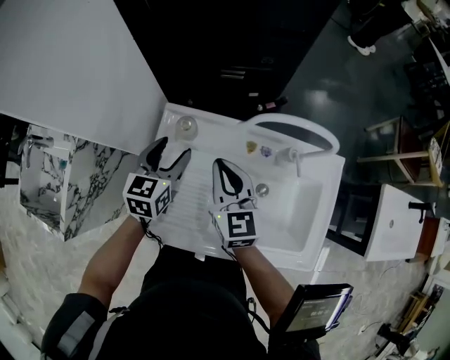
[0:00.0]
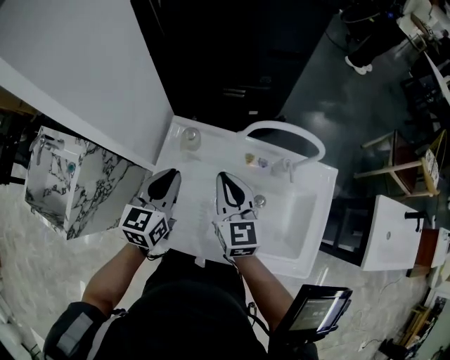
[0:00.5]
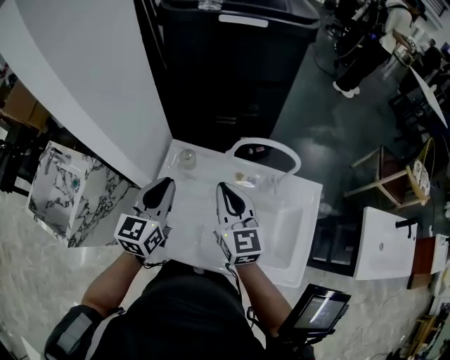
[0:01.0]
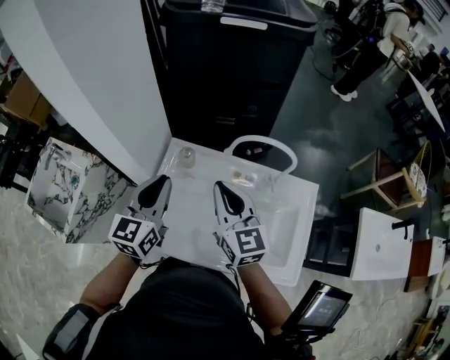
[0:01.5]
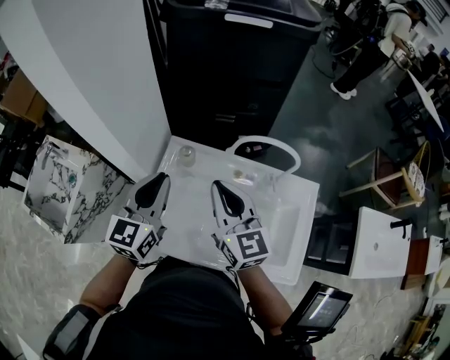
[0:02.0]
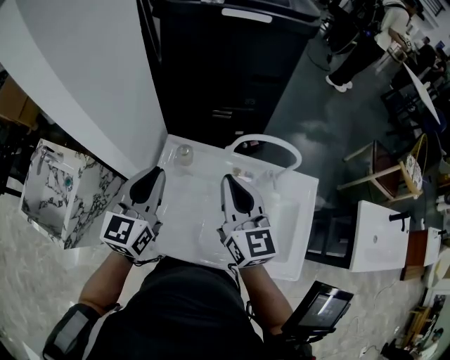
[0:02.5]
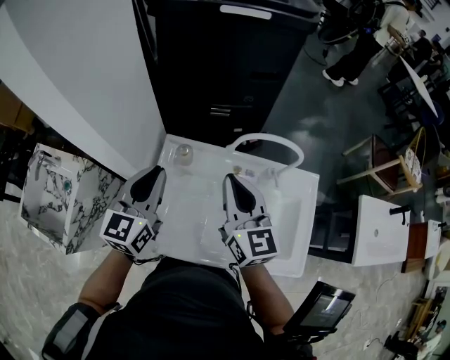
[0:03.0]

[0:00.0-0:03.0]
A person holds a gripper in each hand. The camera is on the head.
0:00.0 to 0:01.5: The two grippers go some 20 cm upward and backward. The left gripper closes its fingers.
0:01.5 to 0:03.0: The grippers stay close to where they were, moving slightly.

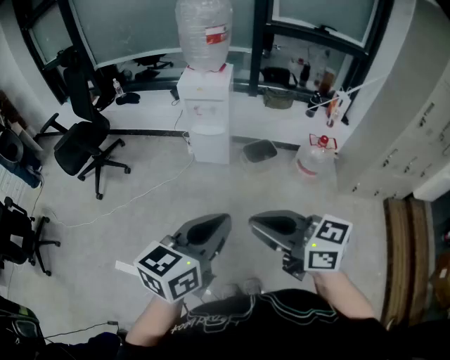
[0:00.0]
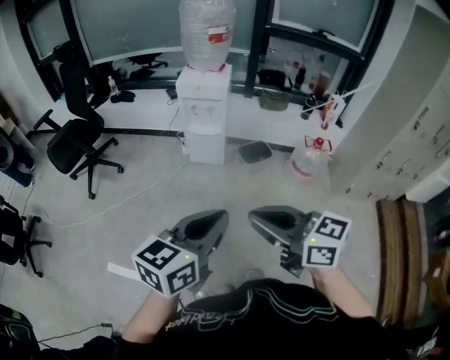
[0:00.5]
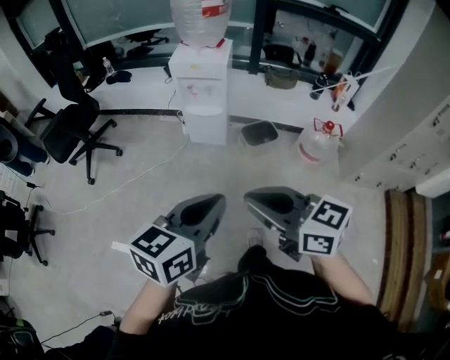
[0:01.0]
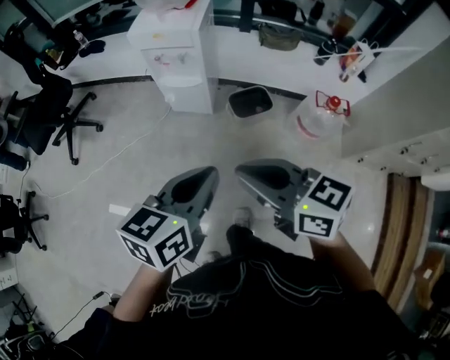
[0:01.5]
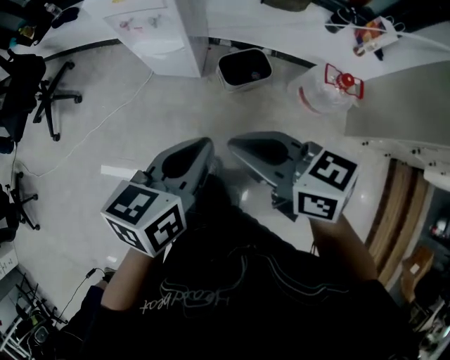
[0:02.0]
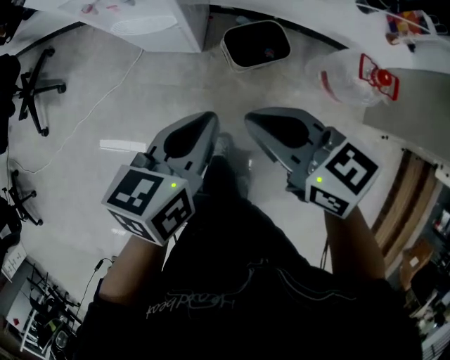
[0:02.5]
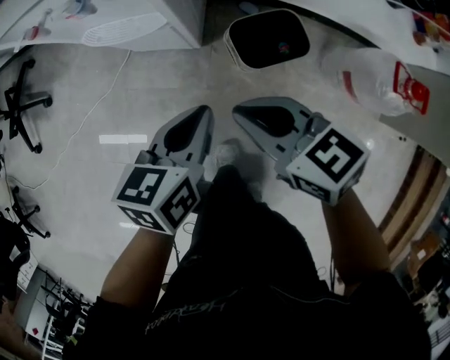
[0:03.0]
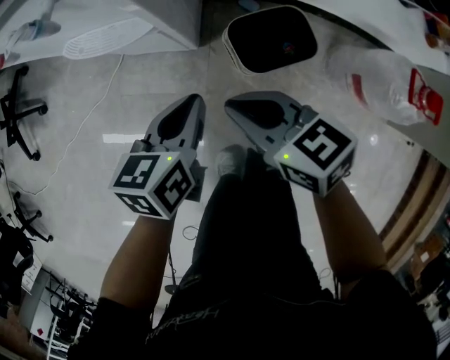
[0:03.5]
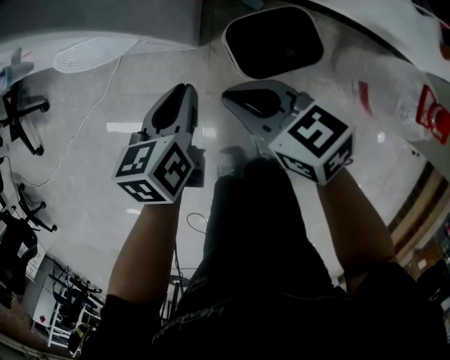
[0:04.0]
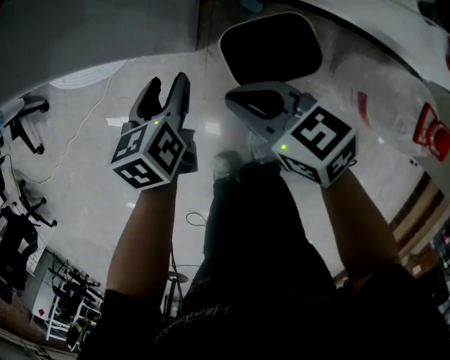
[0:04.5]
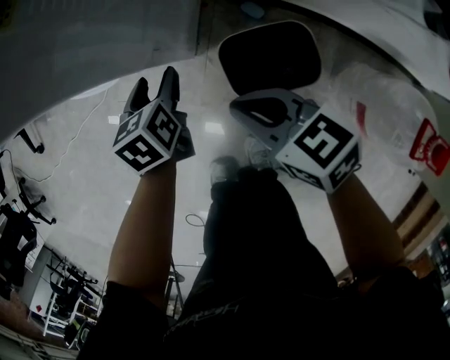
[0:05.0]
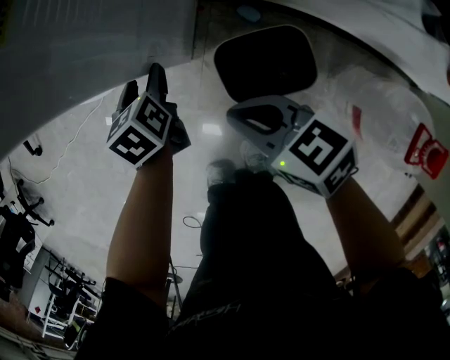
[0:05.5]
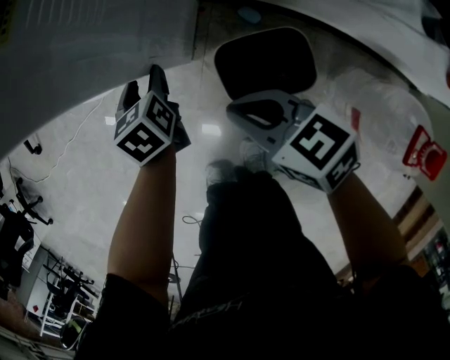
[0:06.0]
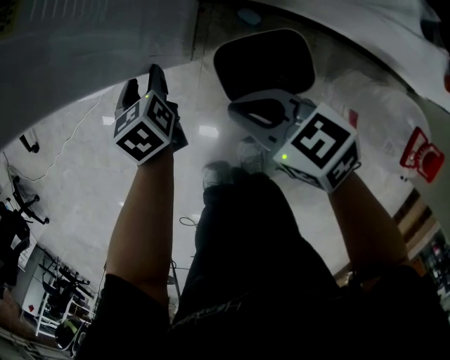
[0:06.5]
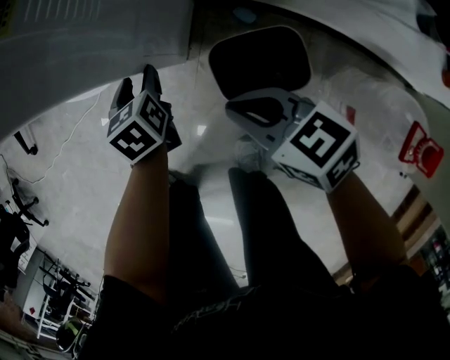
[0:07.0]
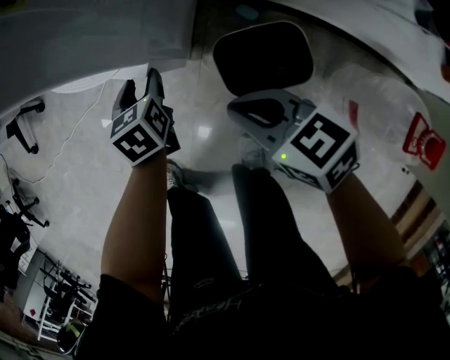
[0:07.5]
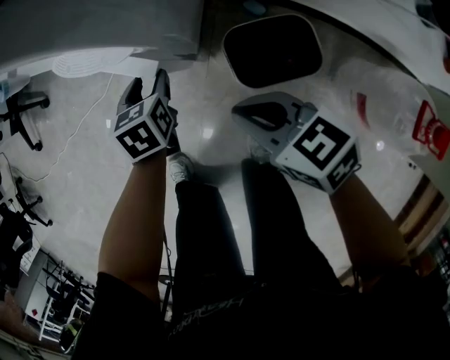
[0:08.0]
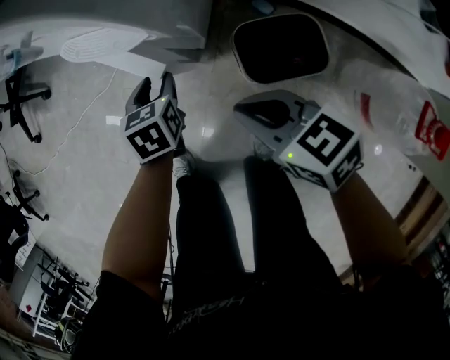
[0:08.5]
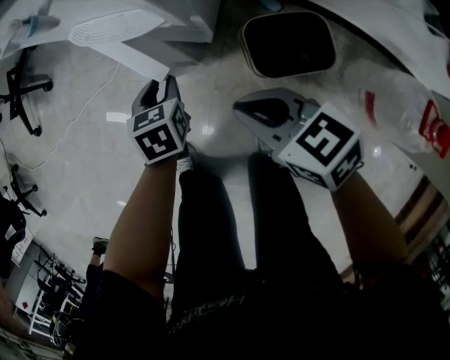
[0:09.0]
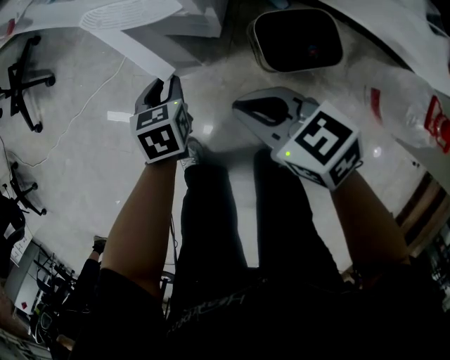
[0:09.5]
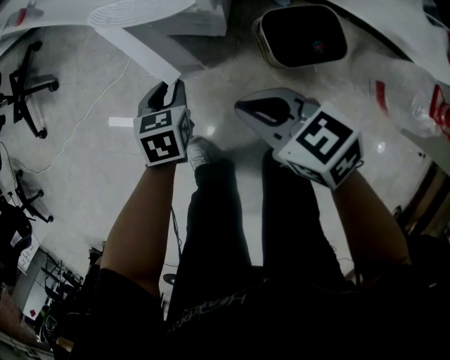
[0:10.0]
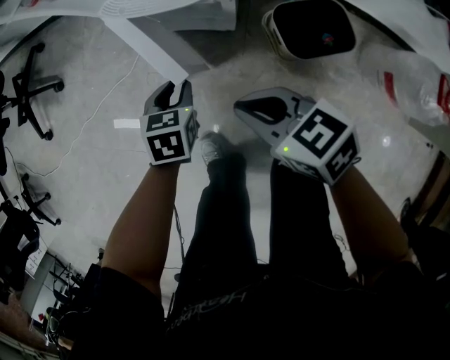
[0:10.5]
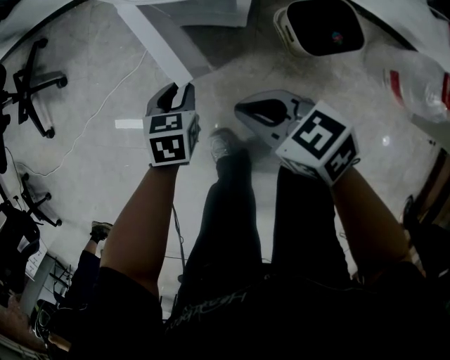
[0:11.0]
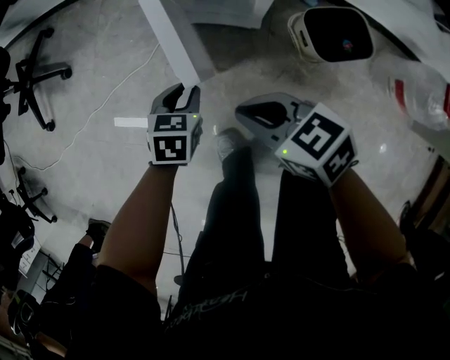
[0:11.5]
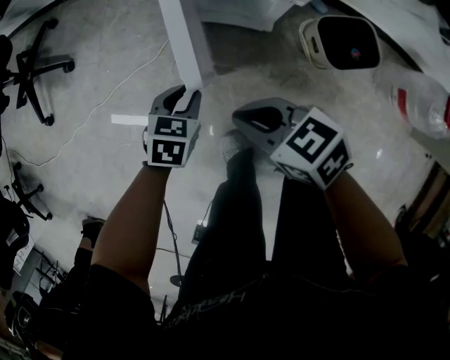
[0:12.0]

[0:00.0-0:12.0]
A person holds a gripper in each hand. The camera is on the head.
0:00.0 to 0:02.0: The two grippers go some 40 cm forward, downward and to the right. The left gripper swivels some 20 degrees.
0:02.0 to 0:04.0: Both grippers travel together downward and forward, roughly 50 cm. The left gripper swivels roughly 20 degrees.
0:04.0 to 0:06.0: The right gripper shifts by roughly 5 cm. Meanwhile the left gripper moves some 15 cm, swivels roughly 30 degrees, and opens its fingers.
0:06.0 to 0:08.0: Both grippers travel together to the left, about 5 cm.
0:08.0 to 0:10.0: The two grippers go approximately 10 cm to the left. The left gripper closes up.
0:10.0 to 0:12.0: Both grippers move to the left, some 15 cm.

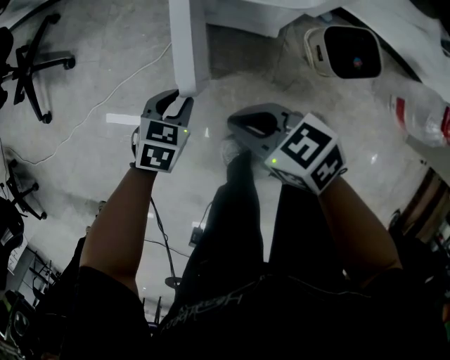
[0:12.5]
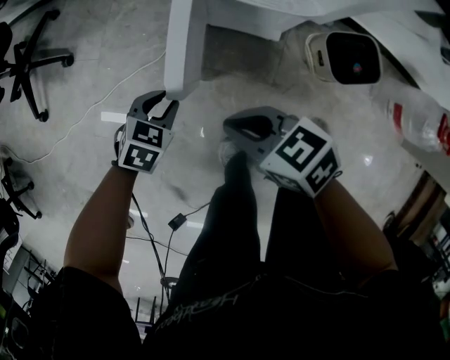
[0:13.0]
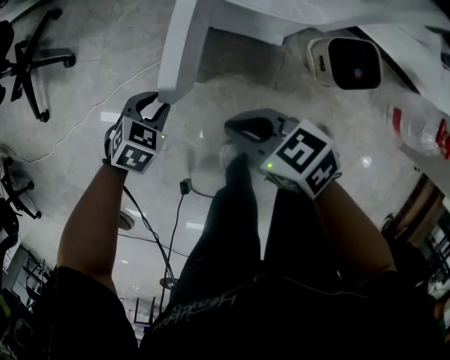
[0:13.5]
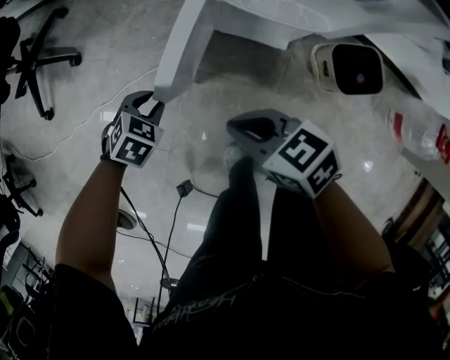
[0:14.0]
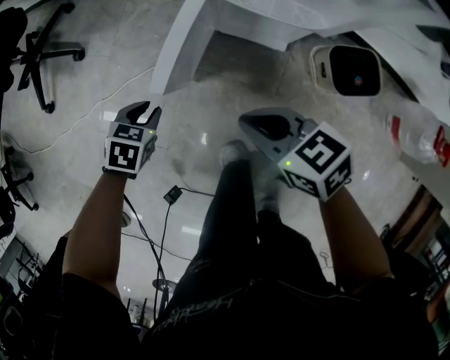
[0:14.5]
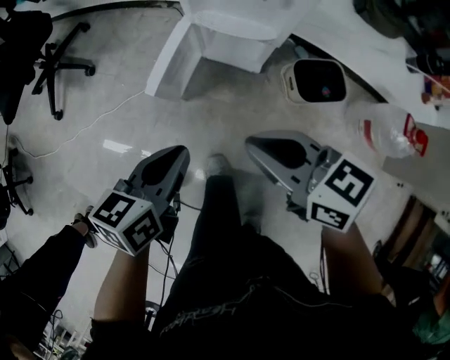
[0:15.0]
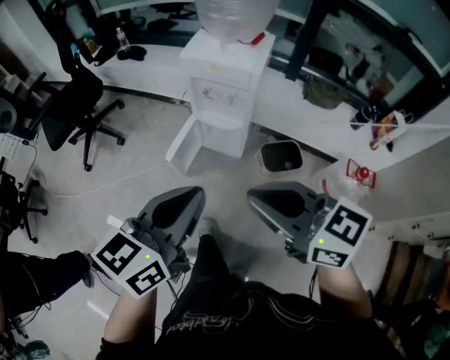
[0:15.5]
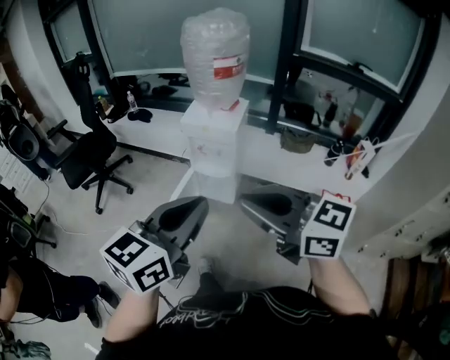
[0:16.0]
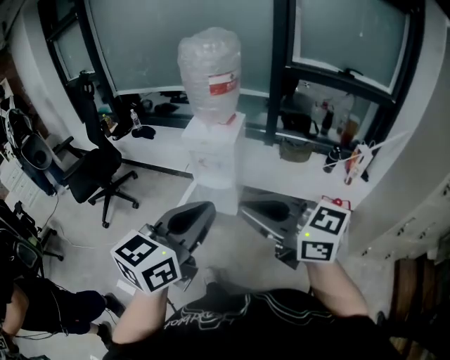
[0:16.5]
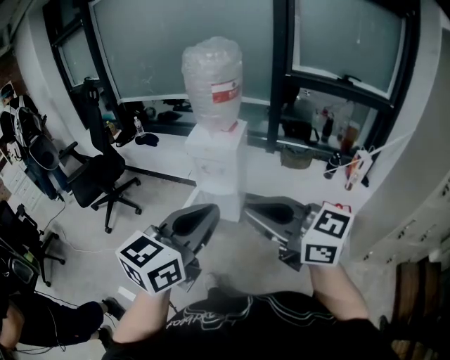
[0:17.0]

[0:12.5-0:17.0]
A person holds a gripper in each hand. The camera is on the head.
0:12.5 to 0:14.5: The left gripper goes roughly 10 cm to the left.
0:14.5 to 0:17.0: The grippers both shift upward and backward by approximately 90 cm. The right gripper tilts its fingers roughly 40 degrees upward; the left gripper angles its fingers upward, by some 70 degrees, and closes up.

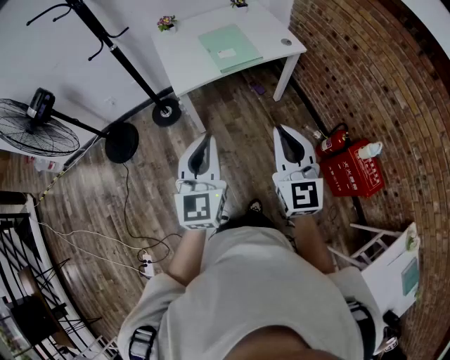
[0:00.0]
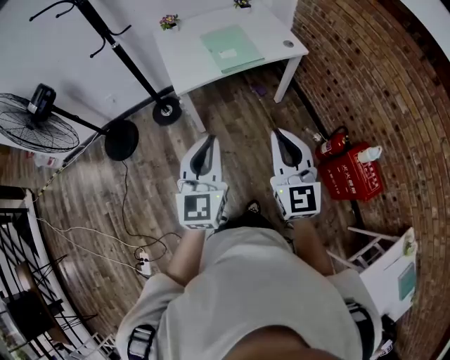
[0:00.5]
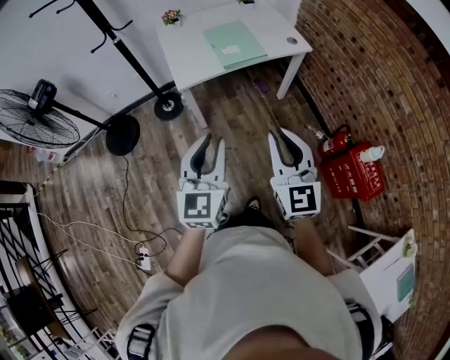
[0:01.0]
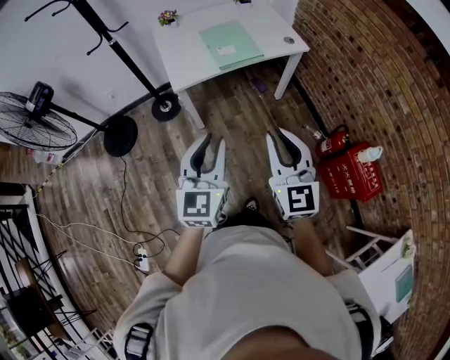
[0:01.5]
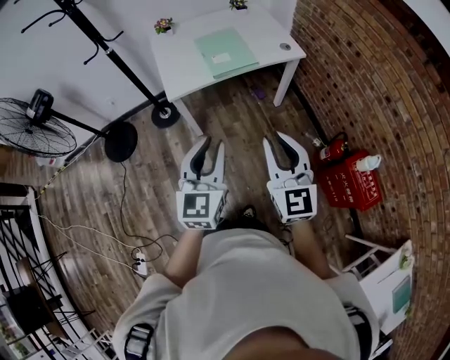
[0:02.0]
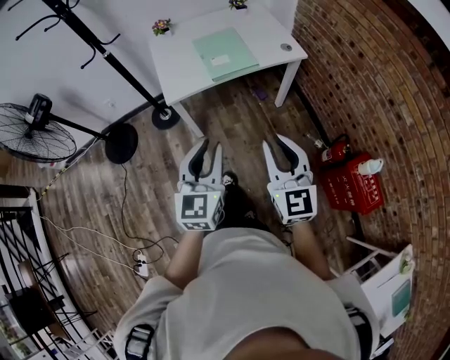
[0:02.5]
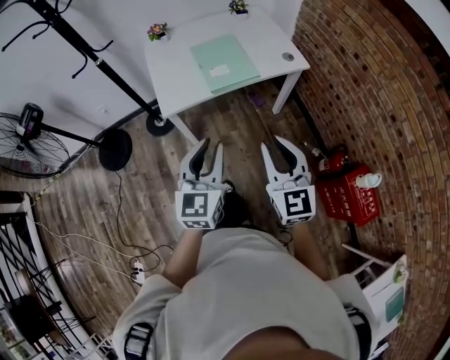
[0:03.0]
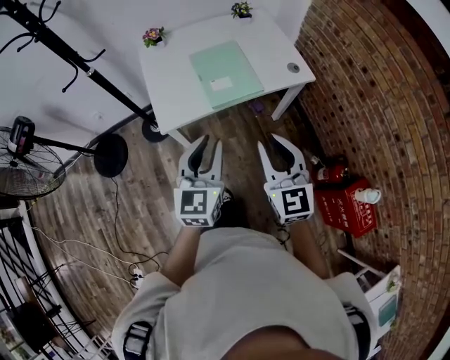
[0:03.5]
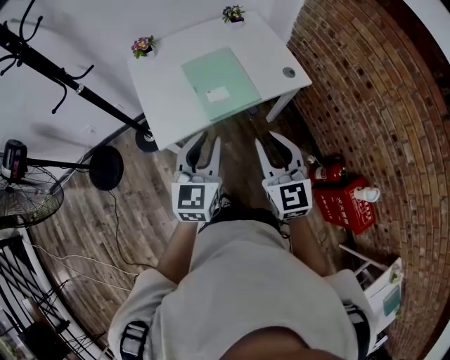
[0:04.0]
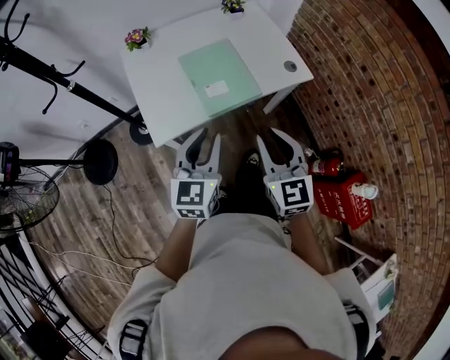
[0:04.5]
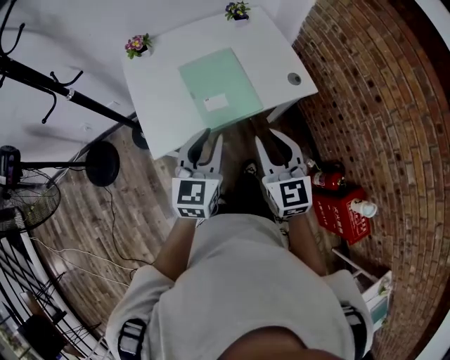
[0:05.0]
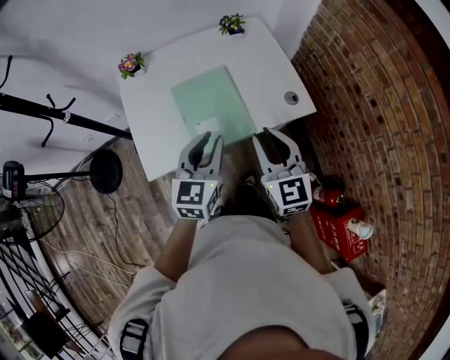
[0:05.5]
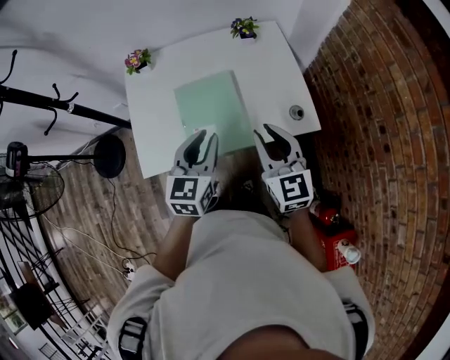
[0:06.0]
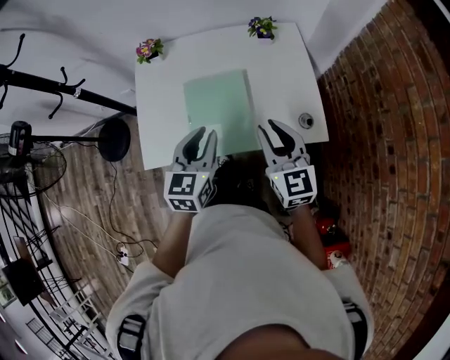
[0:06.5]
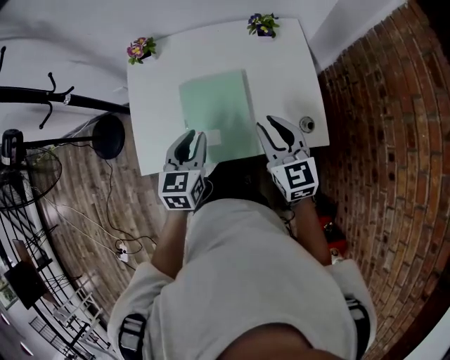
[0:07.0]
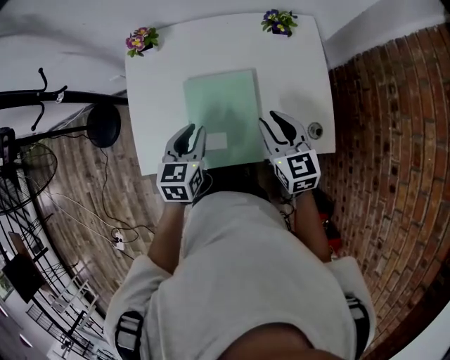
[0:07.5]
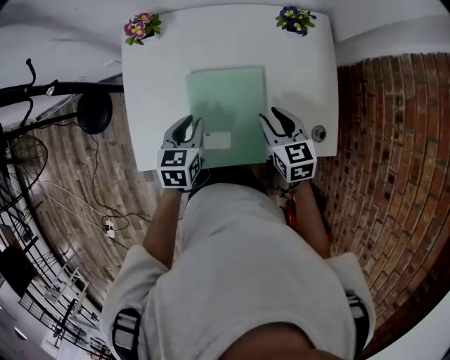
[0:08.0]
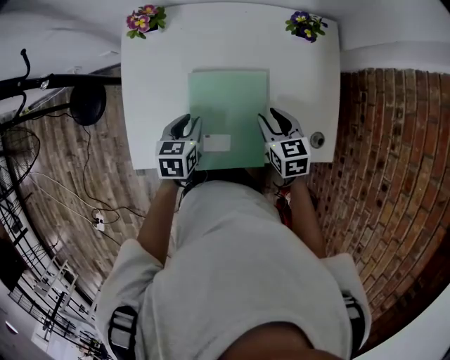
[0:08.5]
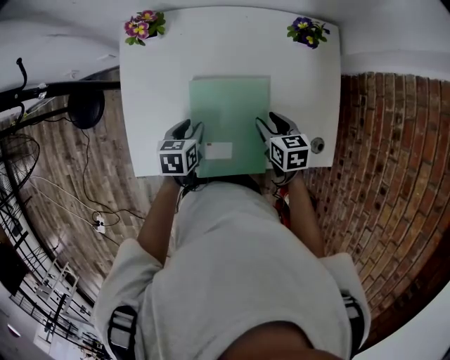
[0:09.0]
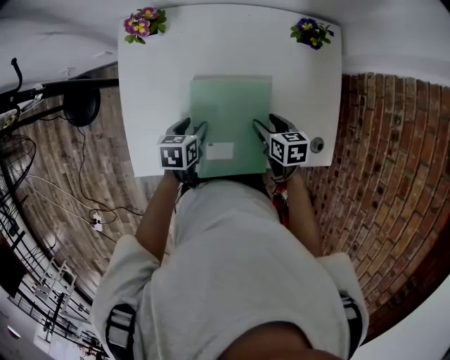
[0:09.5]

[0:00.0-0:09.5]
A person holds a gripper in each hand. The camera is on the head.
0:00.0 to 0:02.0: Both grippers move to the right, approximately 5 cm.
0:02.0 to 0:04.0: The two grippers go approximately 30 cm forward.
0:04.0 to 0:05.5: The left gripper shifts about 20 cm forward and to the right. Meanwhile the right gripper goes approximately 20 cm forward.
0:05.5 to 0:07.5: Both grippers move forward and downward, about 20 cm. The left gripper turns by approximately 30 degrees, while the right gripper rotates roughly 20 degrees.
0:07.5 to 0:09.5: The two grippers go about 15 cm downward. The left gripper turns by roughly 30 degrees, and opens up. The right gripper turns by about 40 degrees, and opens its fingers.
